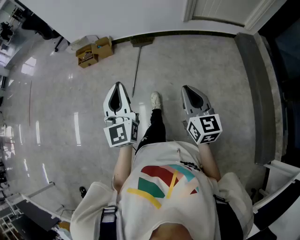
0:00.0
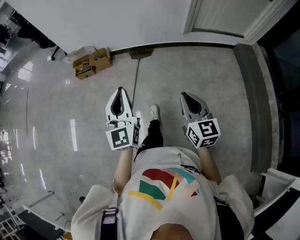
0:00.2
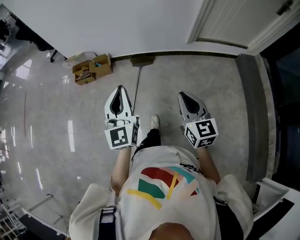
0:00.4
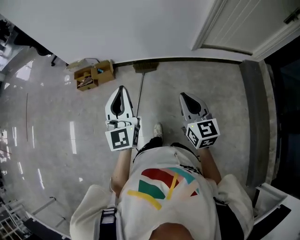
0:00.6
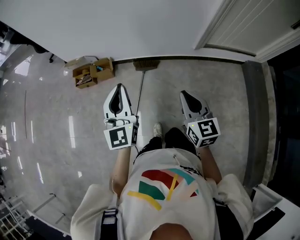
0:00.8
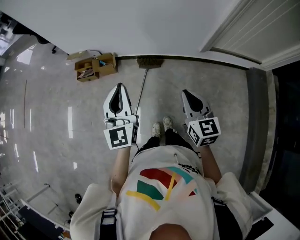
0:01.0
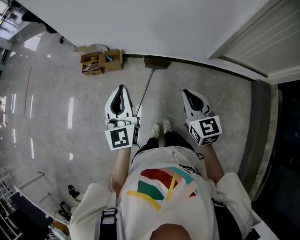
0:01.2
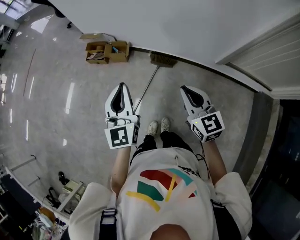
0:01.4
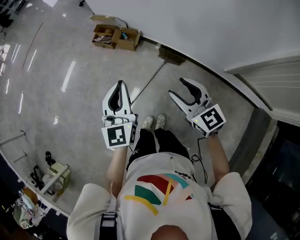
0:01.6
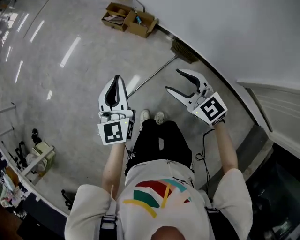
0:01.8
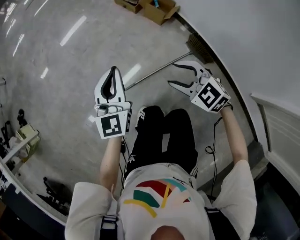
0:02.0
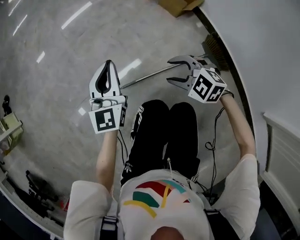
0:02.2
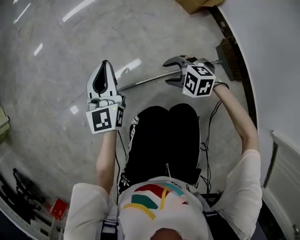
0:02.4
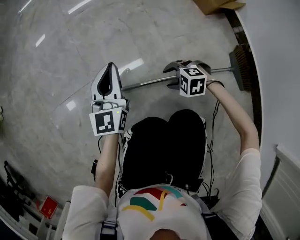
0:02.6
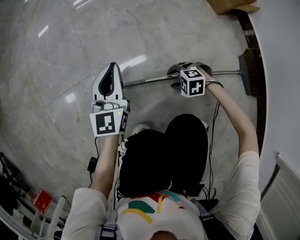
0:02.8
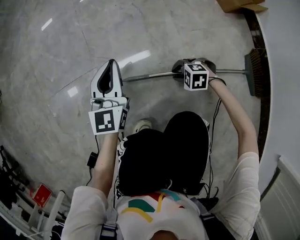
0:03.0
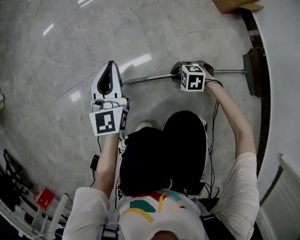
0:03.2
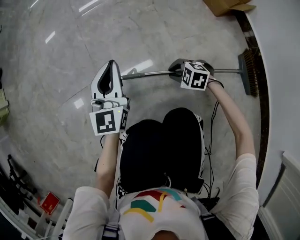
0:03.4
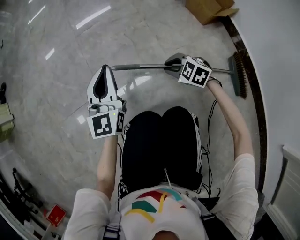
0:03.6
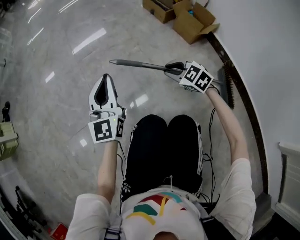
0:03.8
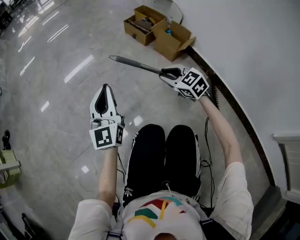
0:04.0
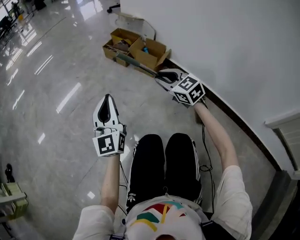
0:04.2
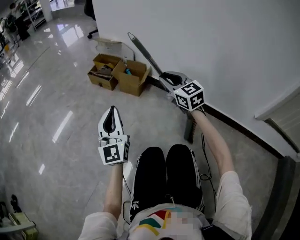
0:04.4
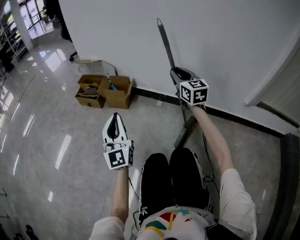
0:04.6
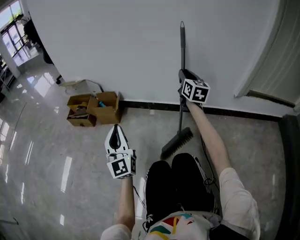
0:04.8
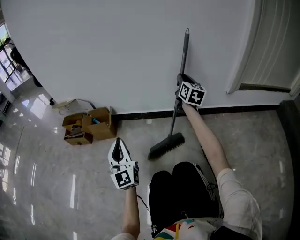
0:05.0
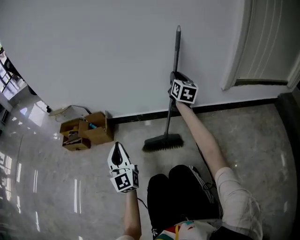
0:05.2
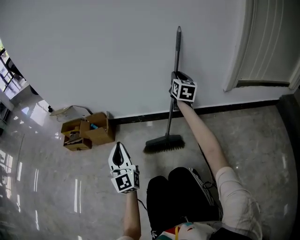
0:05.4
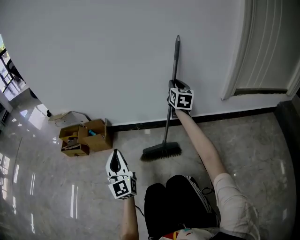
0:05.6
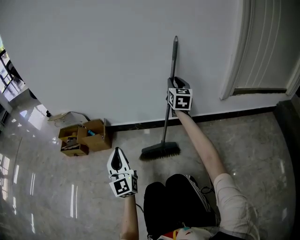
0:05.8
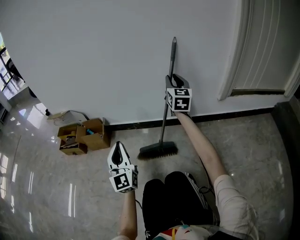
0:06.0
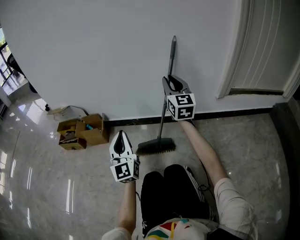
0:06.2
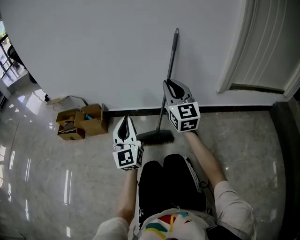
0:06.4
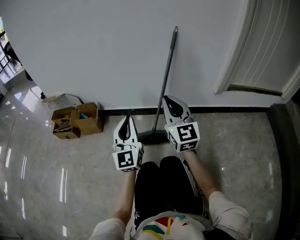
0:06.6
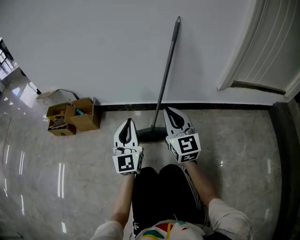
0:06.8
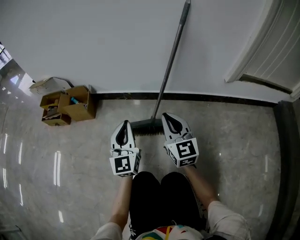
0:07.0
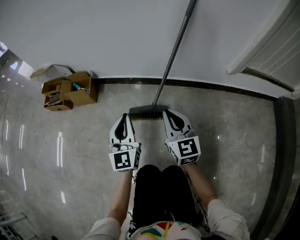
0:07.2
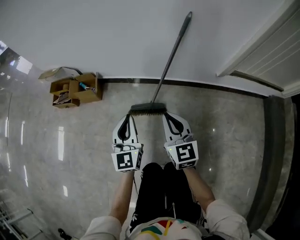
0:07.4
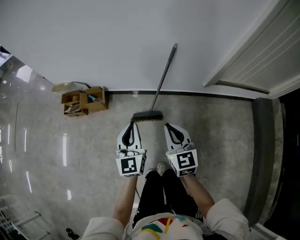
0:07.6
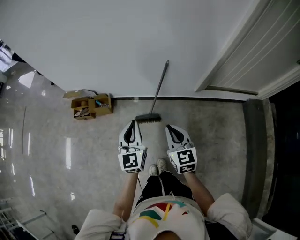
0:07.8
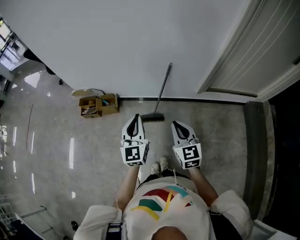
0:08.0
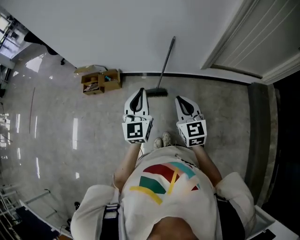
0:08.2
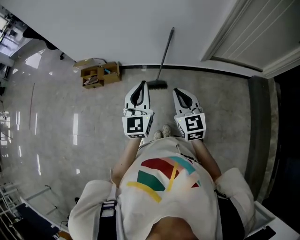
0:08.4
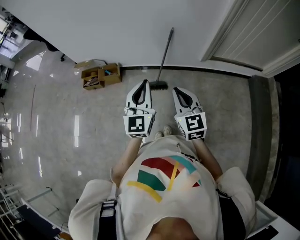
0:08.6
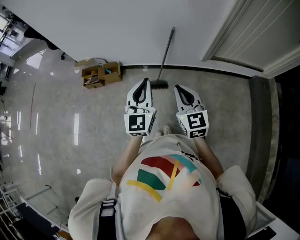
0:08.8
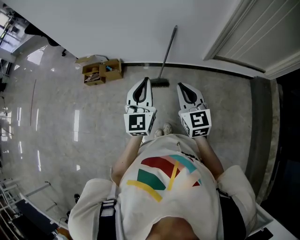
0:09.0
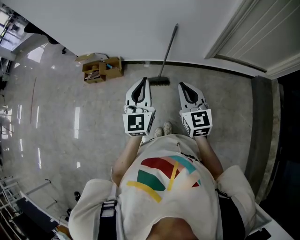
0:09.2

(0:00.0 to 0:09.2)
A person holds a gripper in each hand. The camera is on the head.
0:00.0 - 0:01.6: The two grippers travel together, about 60 cm. The left gripper swivels some 30 degrees; the right gripper changes its angle by about 60 degrees, and opens up.
0:01.6 - 0:03.0: The two grippers go about 90 cm downward. The right gripper points its fingers some 50 degrees further downward, and closes; the left gripper rotates approximately 40 degrees.
0:03.0 - 0:04.6: The right gripper moves upward, approximately 60 cm, and angles its fingers upward, by approximately 60 degrees. The left gripper is displaced upward by about 30 cm, and tilts its fingers about 30 degrees upward.
0:04.6 - 0:06.2: The right gripper changes place by roughly 20 cm, and turns by roughly 30 degrees. The left gripper changes place by about 20 cm.
0:06.2 - 0:07.6: The right gripper is displaced backward and upward by some 25 cm, and rotates about 30 degrees. Meanwhile the left gripper is displaced upward by roughly 25 cm.
0:07.6 - 0:09.2: The two grippers go about 30 cm upward and backward.

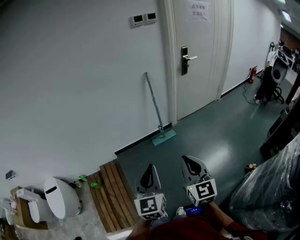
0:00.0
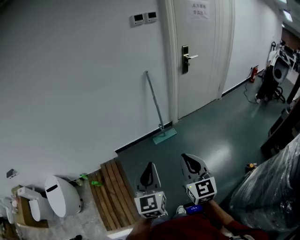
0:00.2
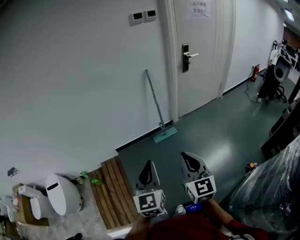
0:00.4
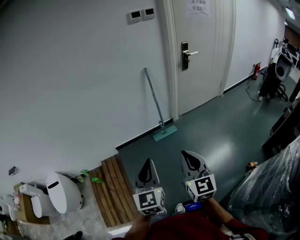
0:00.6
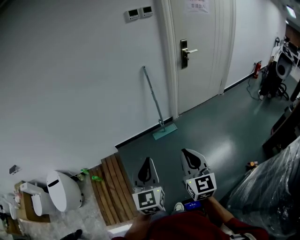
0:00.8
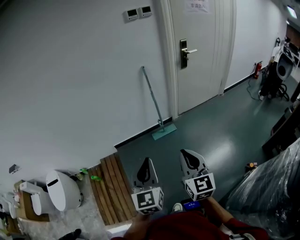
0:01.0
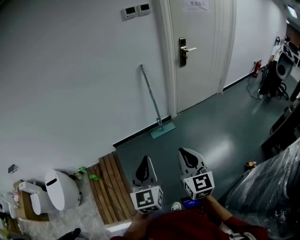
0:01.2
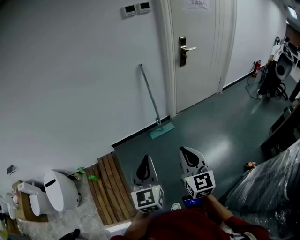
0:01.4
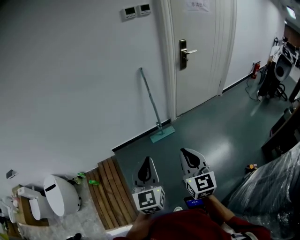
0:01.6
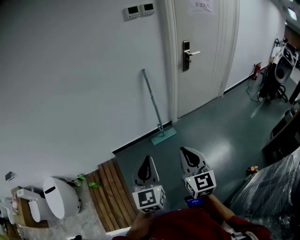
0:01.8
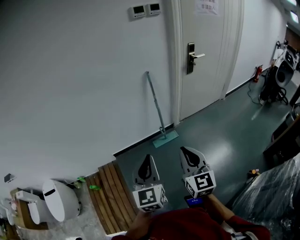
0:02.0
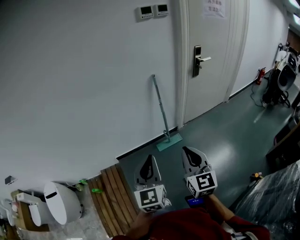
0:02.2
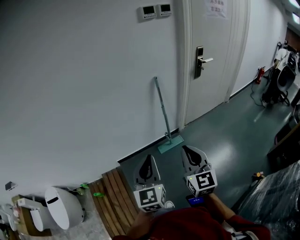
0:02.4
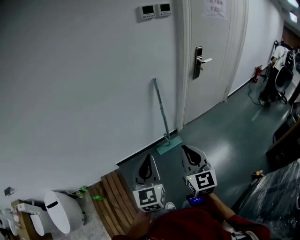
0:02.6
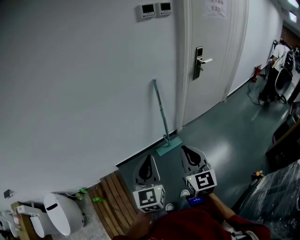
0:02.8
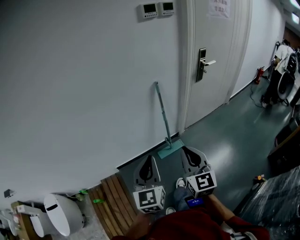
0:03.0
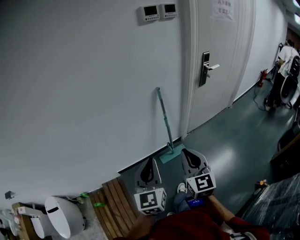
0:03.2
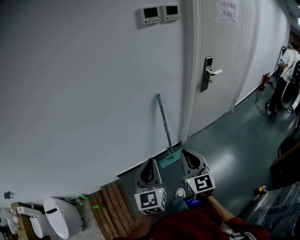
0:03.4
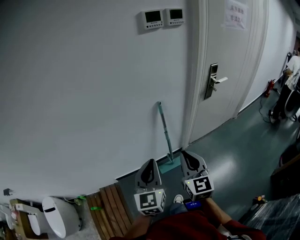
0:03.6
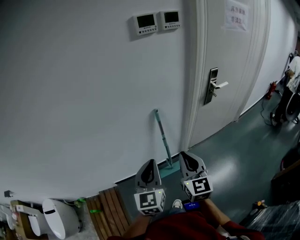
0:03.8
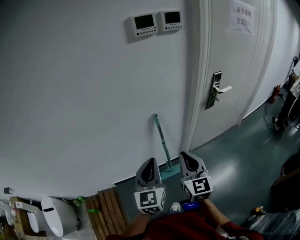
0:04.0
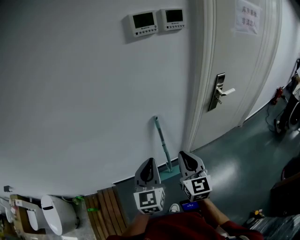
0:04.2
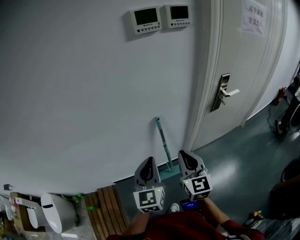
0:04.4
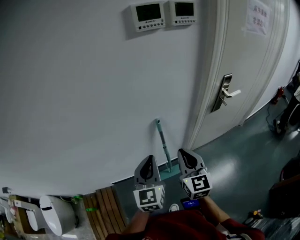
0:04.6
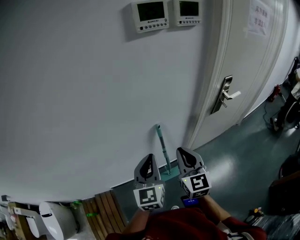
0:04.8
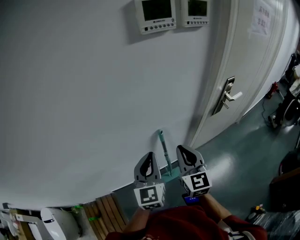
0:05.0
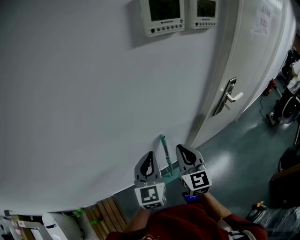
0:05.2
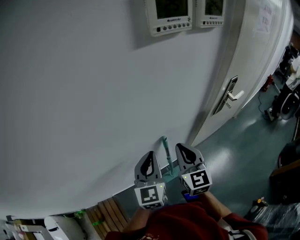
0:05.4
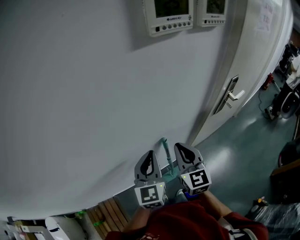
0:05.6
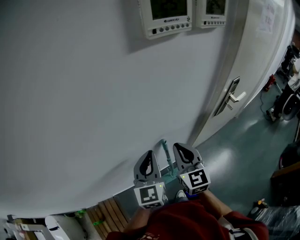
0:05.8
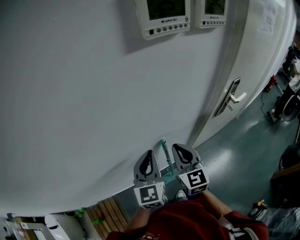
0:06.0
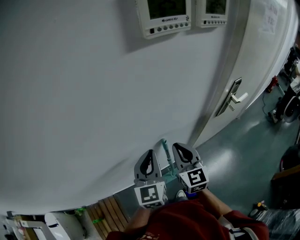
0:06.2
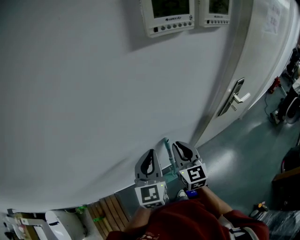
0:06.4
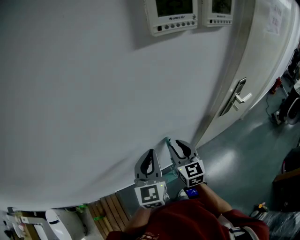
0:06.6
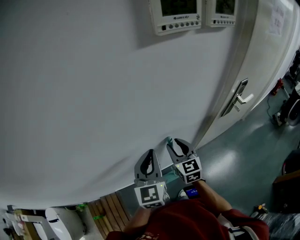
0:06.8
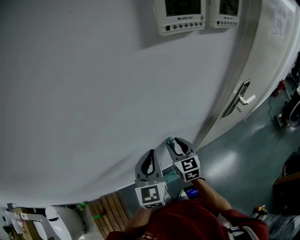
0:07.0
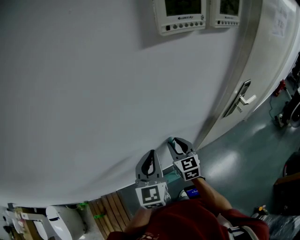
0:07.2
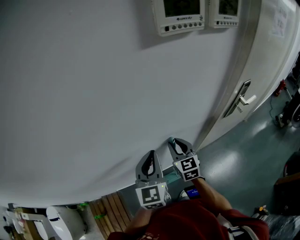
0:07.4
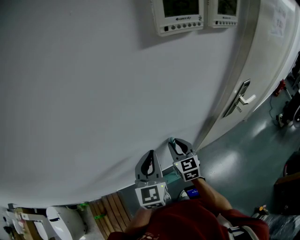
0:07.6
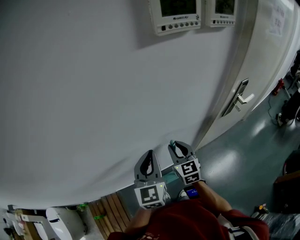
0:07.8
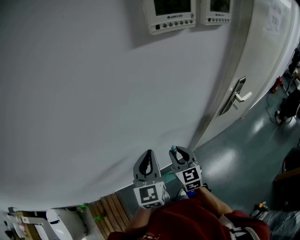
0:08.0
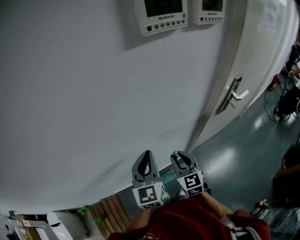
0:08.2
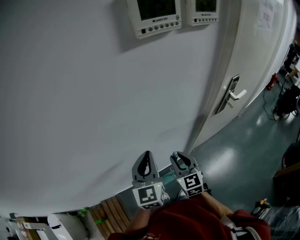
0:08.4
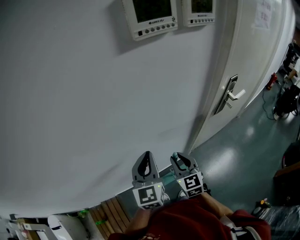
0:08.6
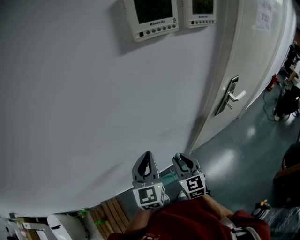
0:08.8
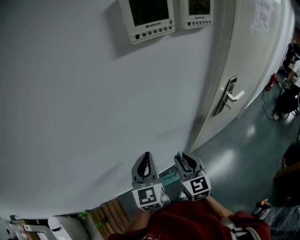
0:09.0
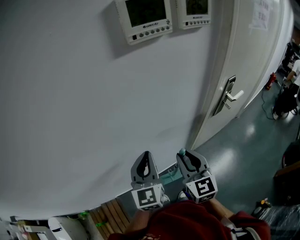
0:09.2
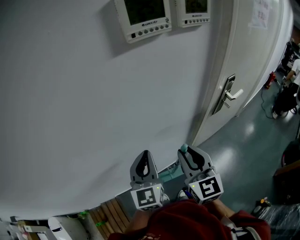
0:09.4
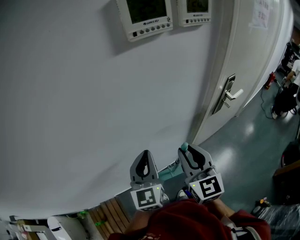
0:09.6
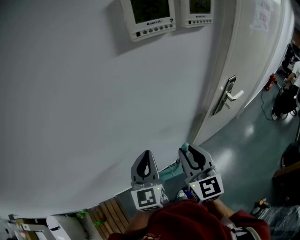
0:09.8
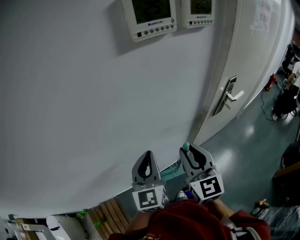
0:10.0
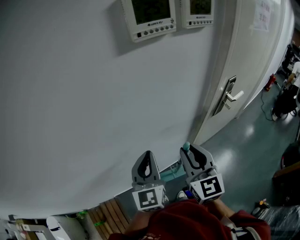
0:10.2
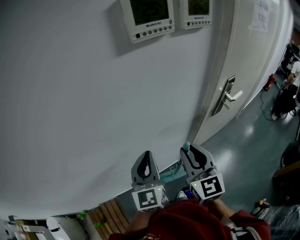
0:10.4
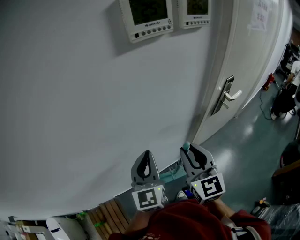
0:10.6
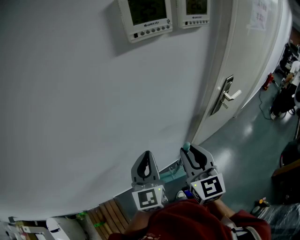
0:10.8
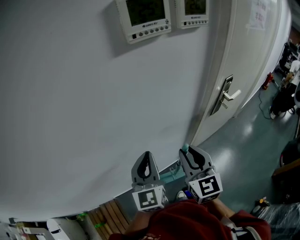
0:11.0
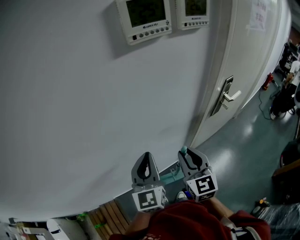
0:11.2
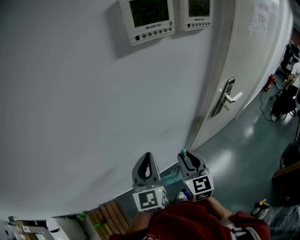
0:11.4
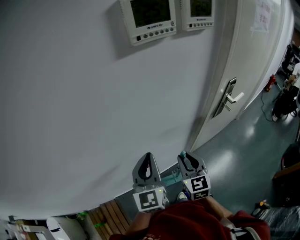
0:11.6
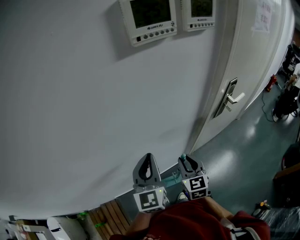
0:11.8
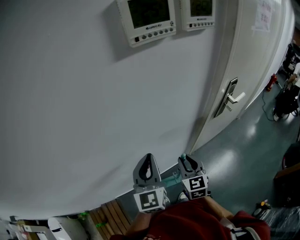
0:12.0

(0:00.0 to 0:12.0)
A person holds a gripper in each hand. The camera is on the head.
0:00.0 - 0:01.6: Both grippers move forward and to the right, about 10 cm.
0:01.6 - 0:03.0: The two grippers go approximately 25 cm forward.
0:03.0 - 0:04.4: The right gripper shifts approximately 30 cm forward, while the left gripper shifts approximately 30 cm forward and to the right.
0:04.4 - 0:06.0: Both grippers travel together forward, approximately 20 cm.
0:06.0 - 0:07.6: The right gripper is displaced downward by roughly 10 cm.
0:07.6 - 0:09.0: The right gripper heads backward and upward, covering roughly 10 cm.
0:09.0 - 0:10.4: The right gripper goes roughly 10 cm upward.
0:10.4 - 0:12.0: The right gripper heads downward, covering approximately 15 cm.

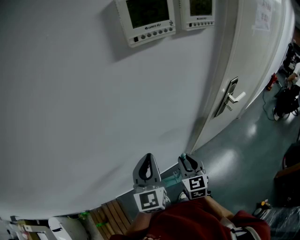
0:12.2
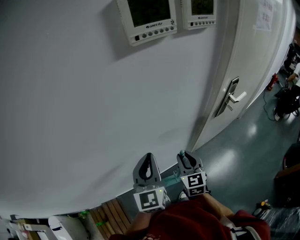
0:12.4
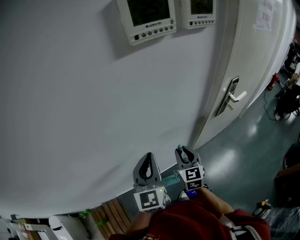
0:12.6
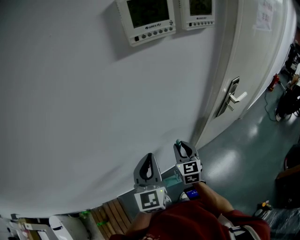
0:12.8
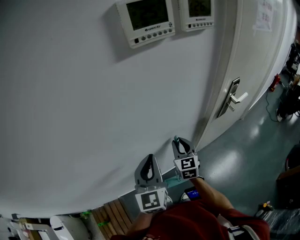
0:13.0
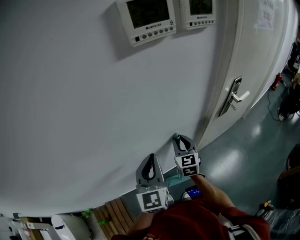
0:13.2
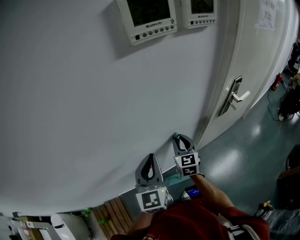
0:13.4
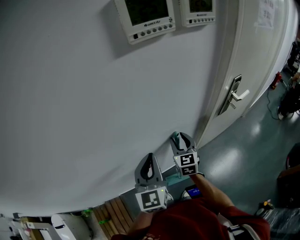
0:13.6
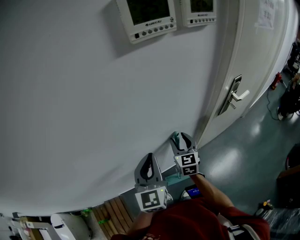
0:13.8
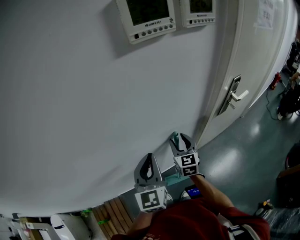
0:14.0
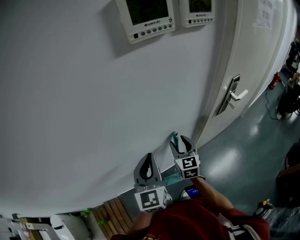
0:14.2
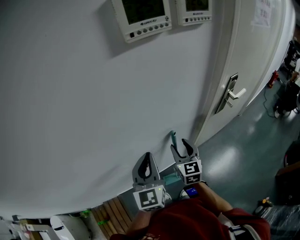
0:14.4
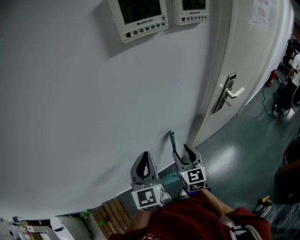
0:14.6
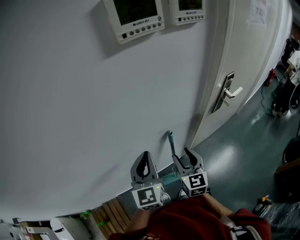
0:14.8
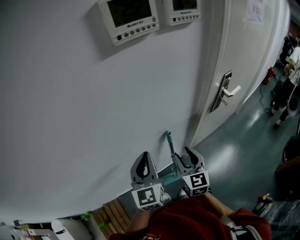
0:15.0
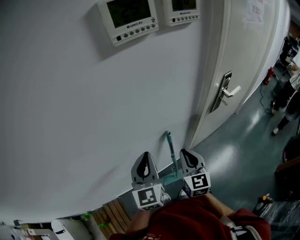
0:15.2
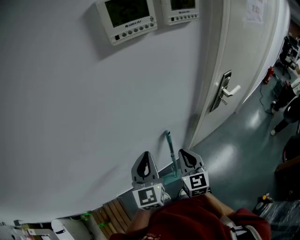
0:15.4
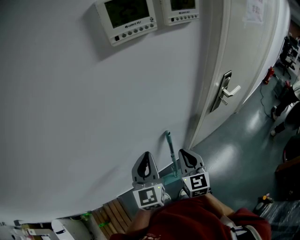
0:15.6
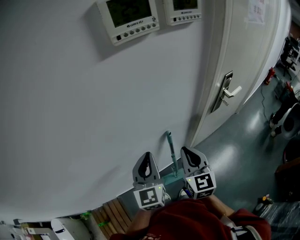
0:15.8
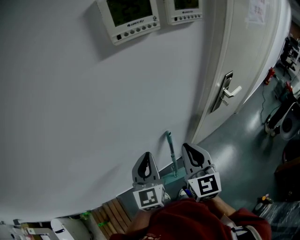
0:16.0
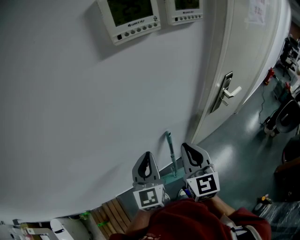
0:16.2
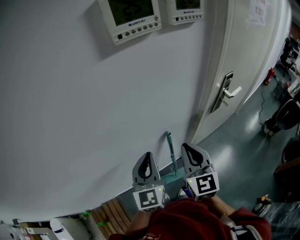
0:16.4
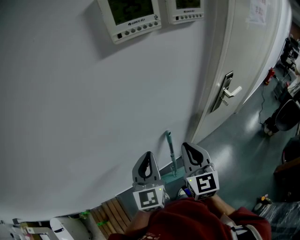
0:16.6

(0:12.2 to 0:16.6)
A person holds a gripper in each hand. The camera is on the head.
0:12.2 - 0:13.6: The right gripper heads forward, covering roughly 10 cm.
0:13.6 - 0:15.2: The right gripper is displaced backward and upward by some 10 cm, and closes.
0:15.2 - 0:16.6: The right gripper travels upward by about 10 cm.
